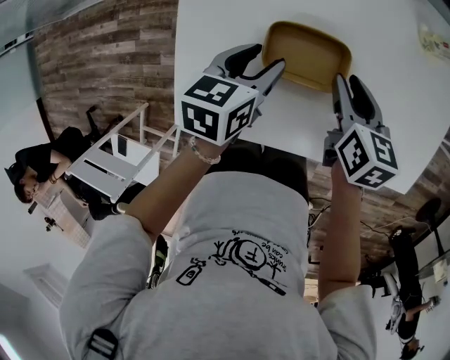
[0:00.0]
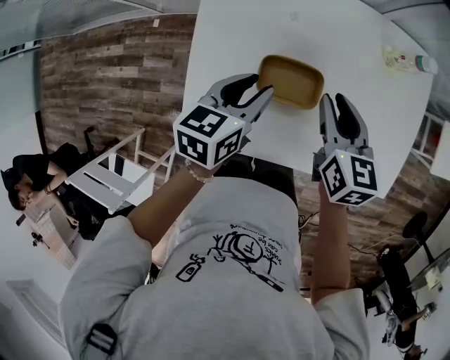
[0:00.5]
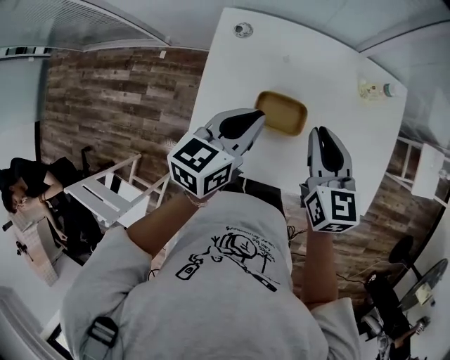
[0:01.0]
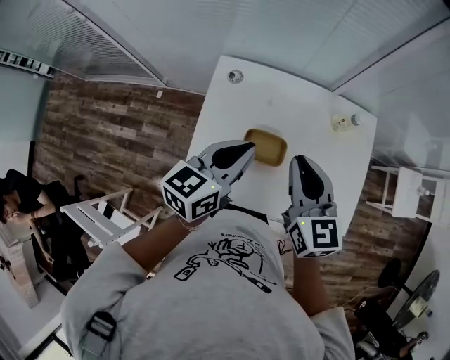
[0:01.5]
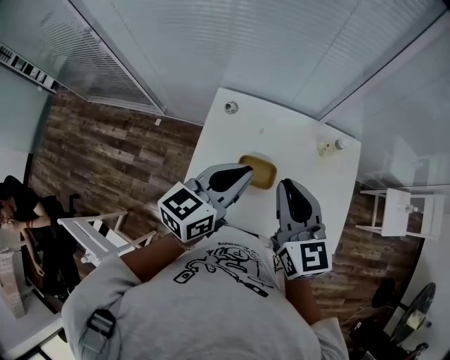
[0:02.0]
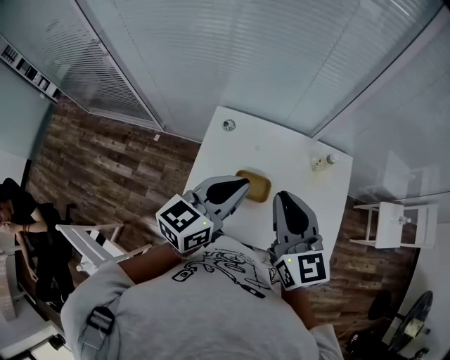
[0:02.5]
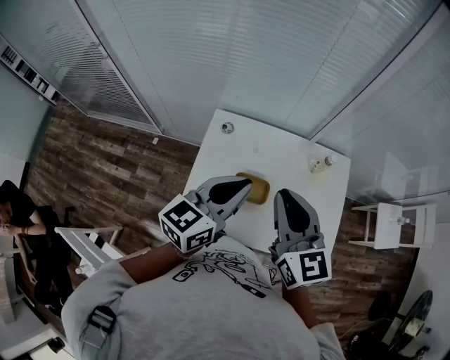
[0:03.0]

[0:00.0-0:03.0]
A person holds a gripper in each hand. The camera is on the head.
0:00.0 to 0:01.5: Both grippers move upward, roughly 35 cm. The right gripper swivels approximately 30 degrees, and closes up. Meanwhile the left gripper swivels roughly 30 degrees, and closes.
0:01.5 to 0:03.0: The two grippers go about 10 cm upward.

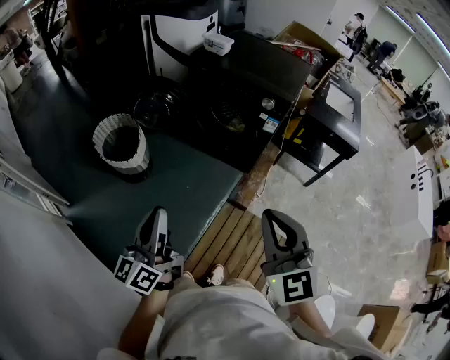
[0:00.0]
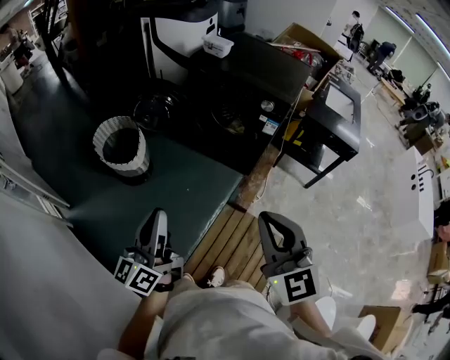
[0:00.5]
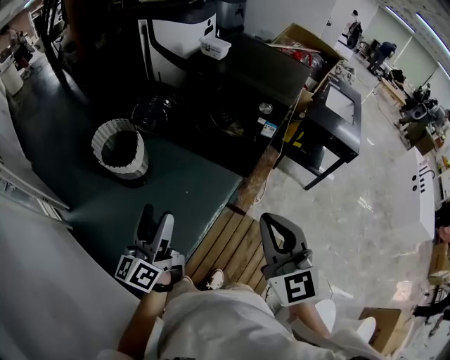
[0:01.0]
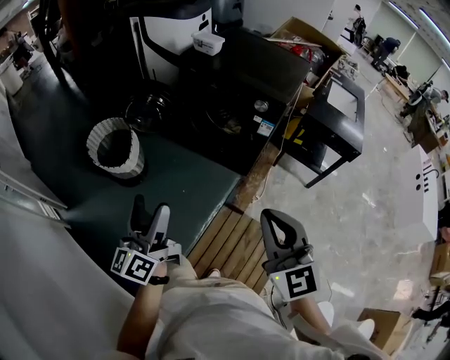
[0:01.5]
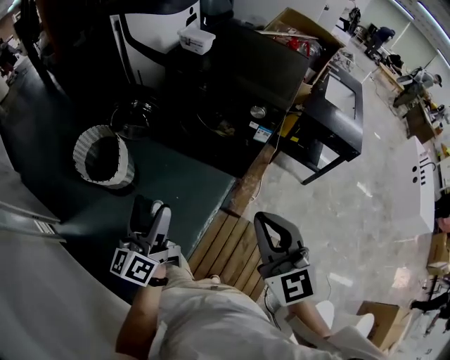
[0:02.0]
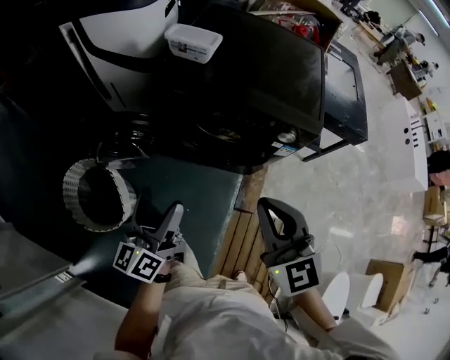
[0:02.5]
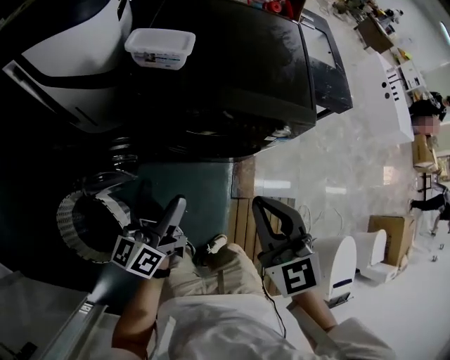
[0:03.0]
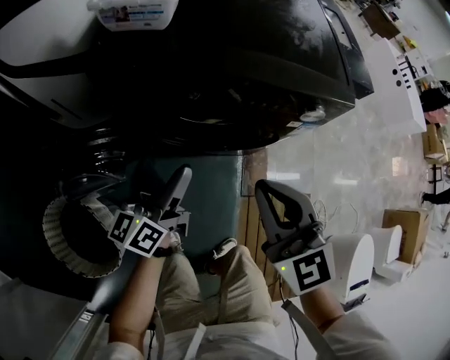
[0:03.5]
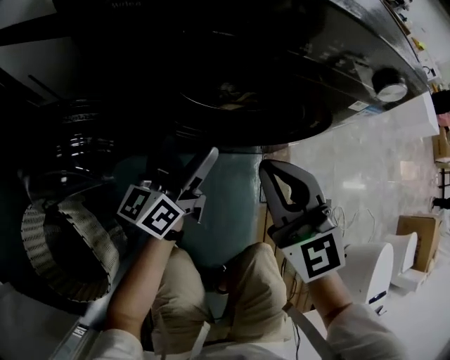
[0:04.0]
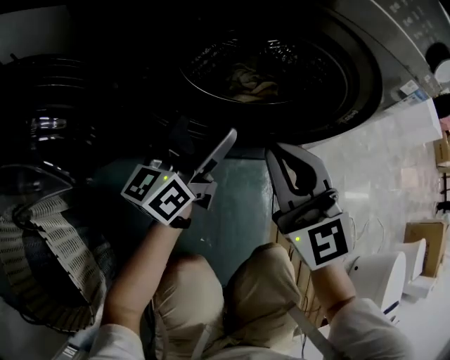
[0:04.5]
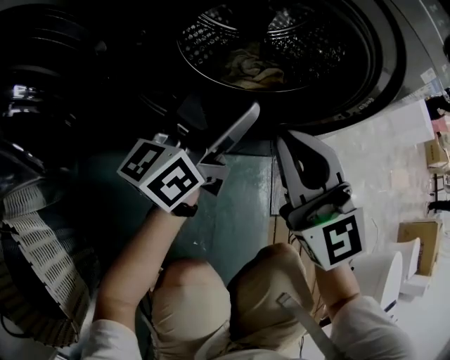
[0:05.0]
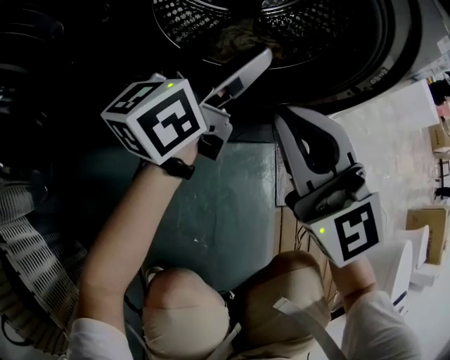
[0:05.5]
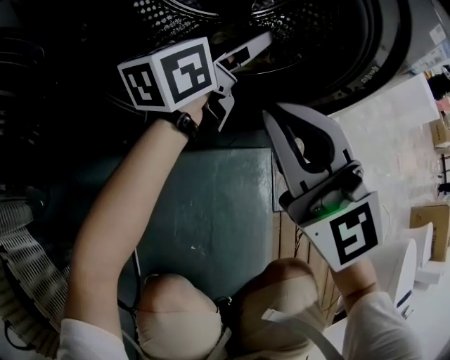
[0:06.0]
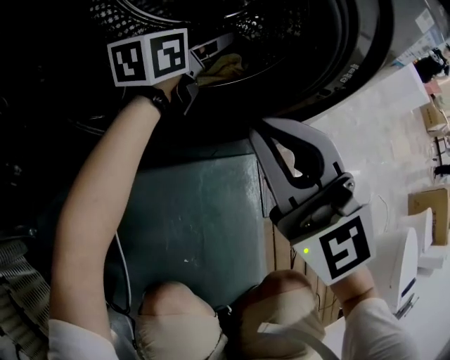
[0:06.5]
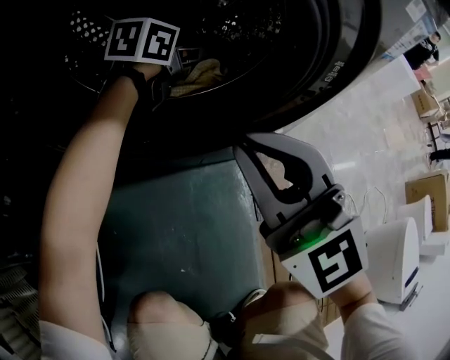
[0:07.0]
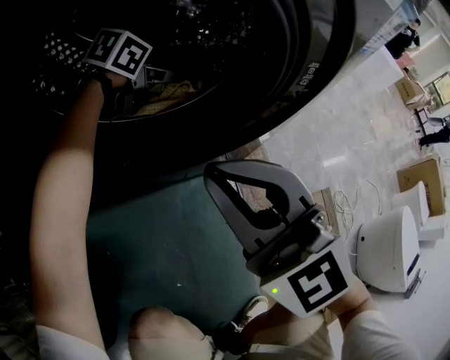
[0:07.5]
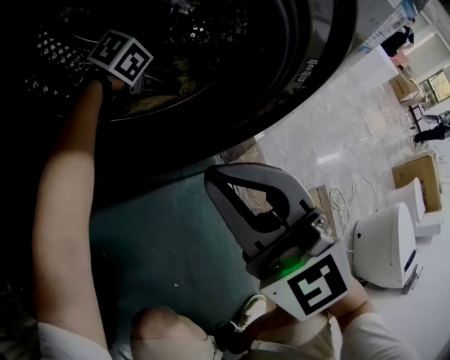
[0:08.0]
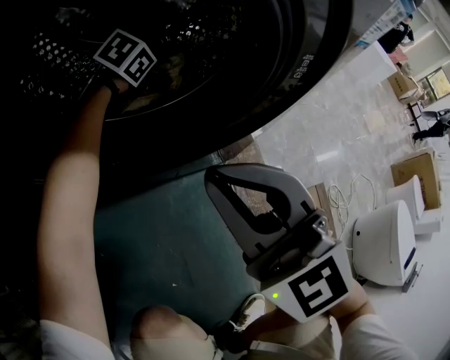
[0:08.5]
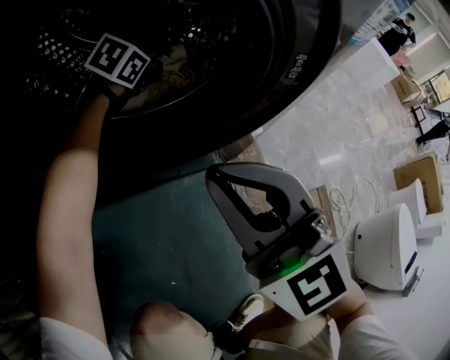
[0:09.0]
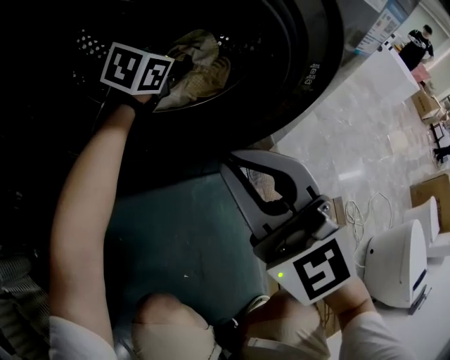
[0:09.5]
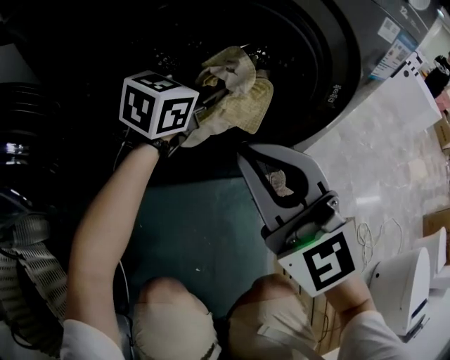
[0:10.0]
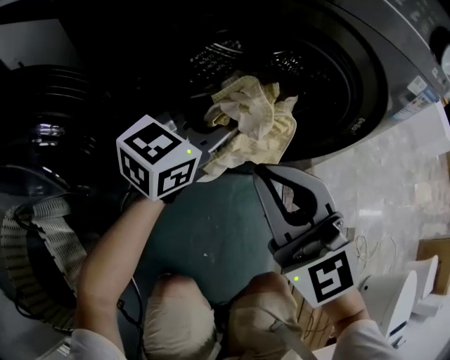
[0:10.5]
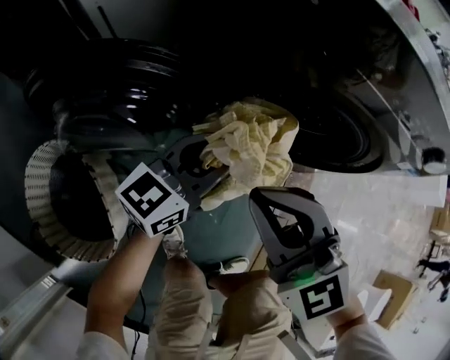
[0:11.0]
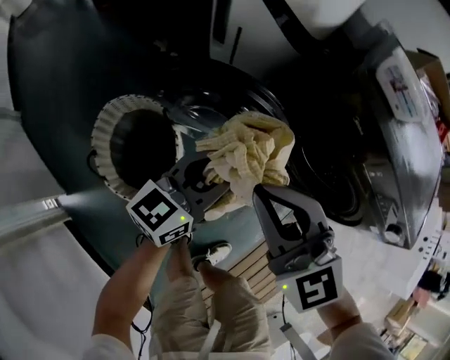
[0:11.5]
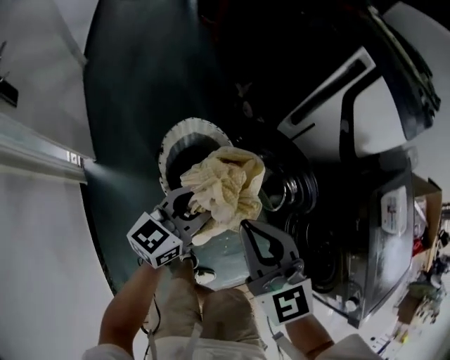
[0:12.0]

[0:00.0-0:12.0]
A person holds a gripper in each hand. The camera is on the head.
0:00.0 to 0:02.0: The right gripper goes about 15 cm forward and to the right, while the left gripper travels forward by approximately 20 cm, and opens.
0:02.0 to 0:04.0: The pair of grippers is taken about 50 cm. The left gripper changes its angle by approximately 40 degrees.
0:04.0 to 0:06.0: The right gripper heads downward, covering roughly 15 cm. The left gripper heads forward, to the right and downward, covering approximately 25 cm.
0:06.0 to 0:08.0: The left gripper shifts some 20 cm downward and forward, and points its fingers approximately 50 degrees further downward, while the right gripper ends up some 5 cm from where it was.
0:08.0 to 0:10.0: The right gripper is displaced upward by some 5 cm. Meanwhile the left gripper is displaced upward and backward by some 20 cm, rotates about 40 degrees, and closes up.
0:10.0 to 0:12.0: The left gripper moves to the left, backward and upward, approximately 30 cm, and turns by about 30 degrees. Meanwhile the right gripper goes approximately 20 cm upward and to the left, and swivels some 20 degrees.

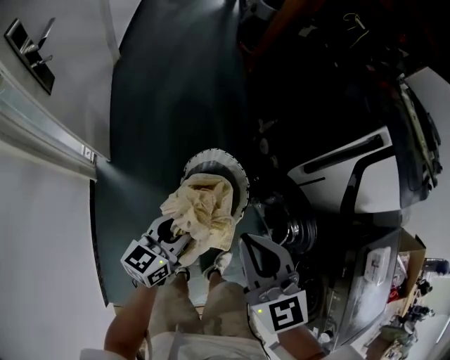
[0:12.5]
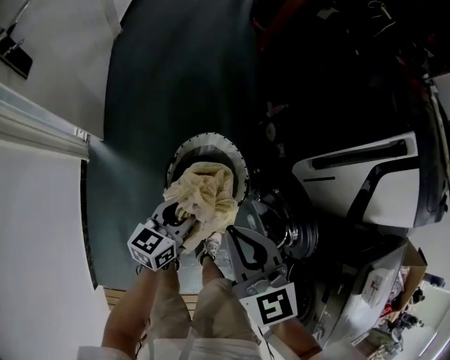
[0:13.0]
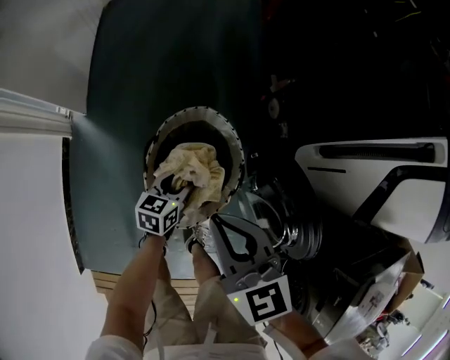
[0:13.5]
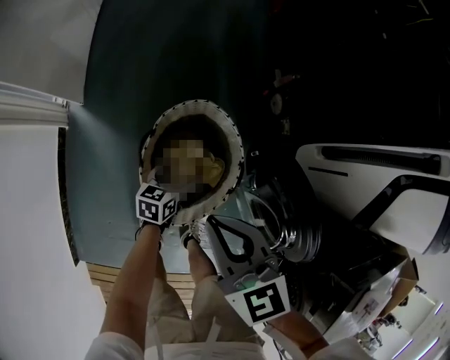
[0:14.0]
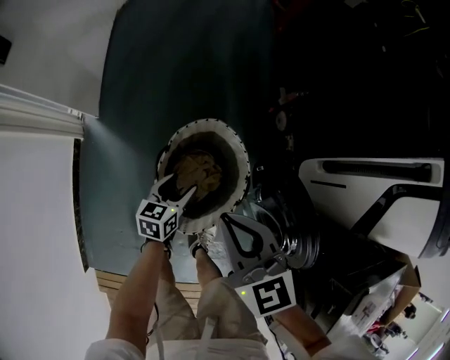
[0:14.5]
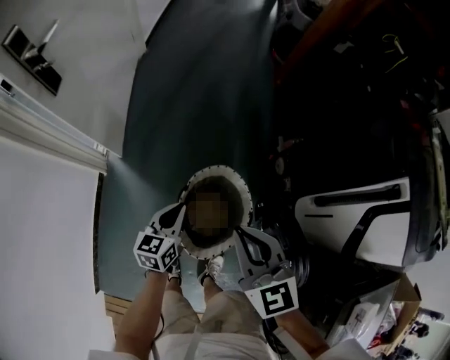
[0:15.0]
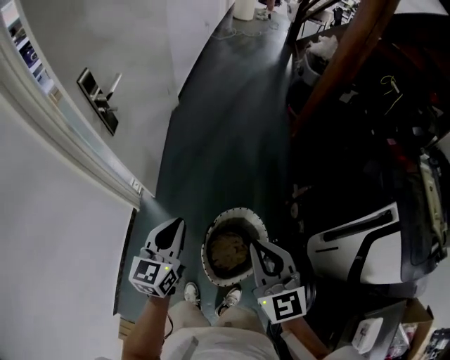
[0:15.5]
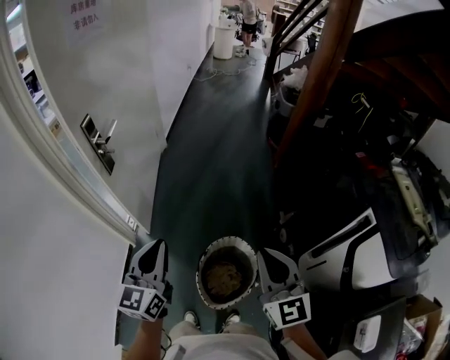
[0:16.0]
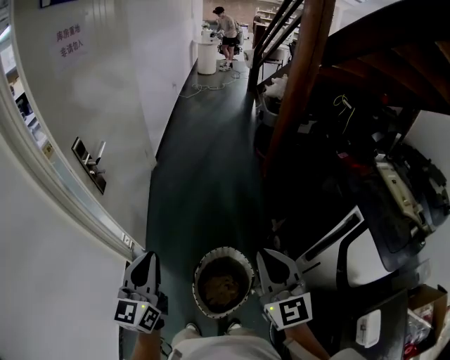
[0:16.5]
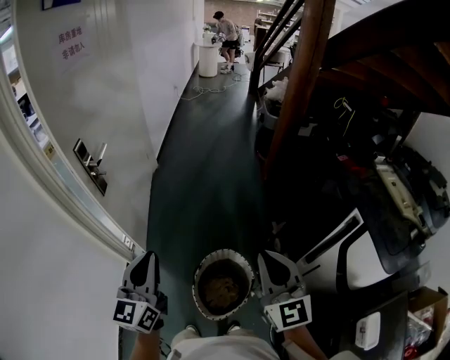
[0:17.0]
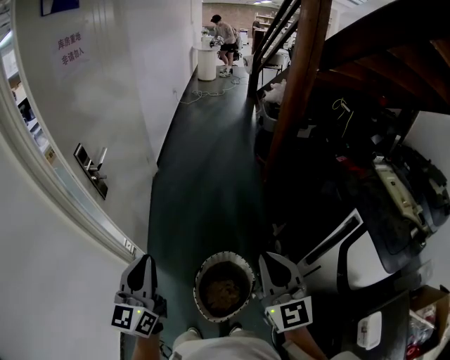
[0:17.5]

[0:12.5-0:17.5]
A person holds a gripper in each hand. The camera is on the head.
0:12.5 to 0:15.0: The right gripper travels forward and to the right by roughly 15 cm, and travels downward and back again, approximately 20 cm each way. The left gripper heads forward, covering some 10 cm, reaches some 35 cm downward, then returns, rotates roughly 30 degrees, and opens and closes again.
0:15.0 to 0:17.5: The left gripper moves upward, approximately 40 cm, and angles its fingers upward, by about 30 degrees. Meanwhile the right gripper heads upward, covering roughly 25 cm, and changes its angle by about 30 degrees.

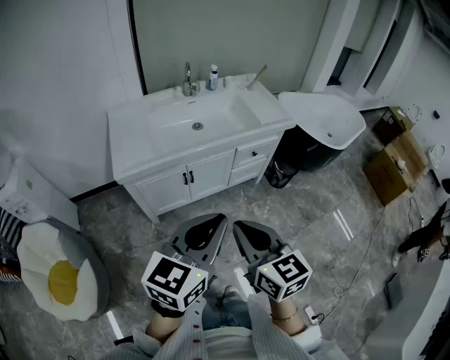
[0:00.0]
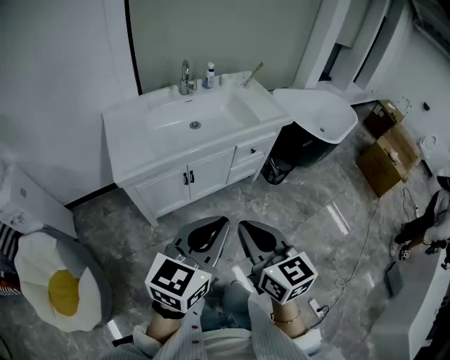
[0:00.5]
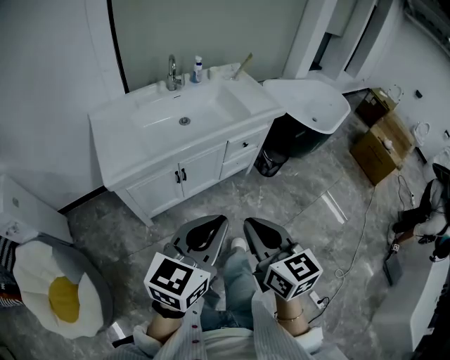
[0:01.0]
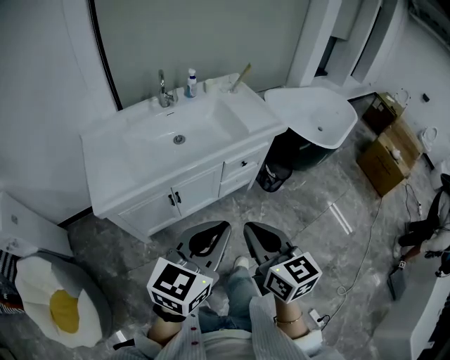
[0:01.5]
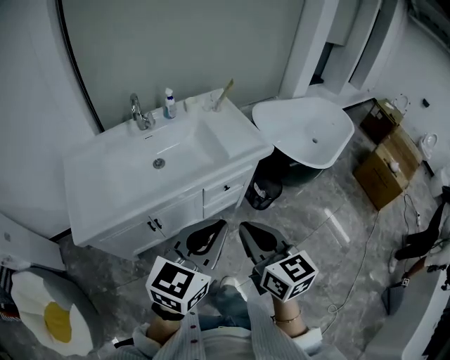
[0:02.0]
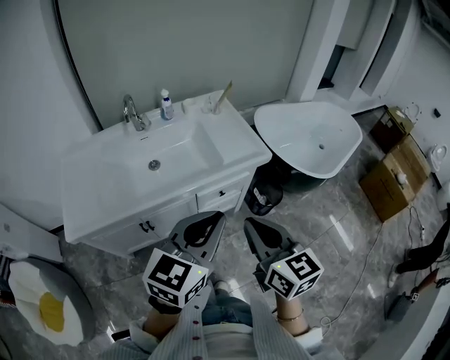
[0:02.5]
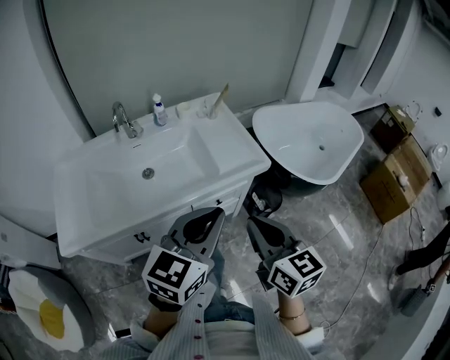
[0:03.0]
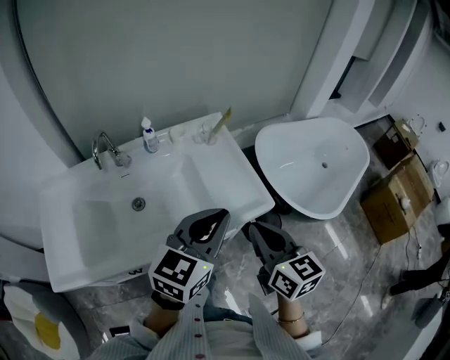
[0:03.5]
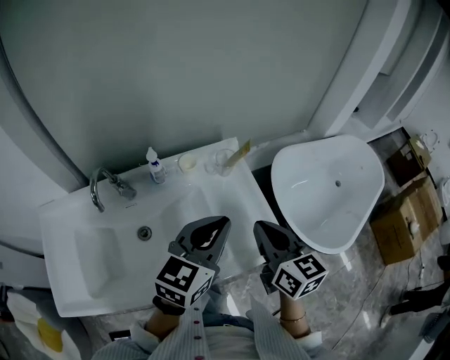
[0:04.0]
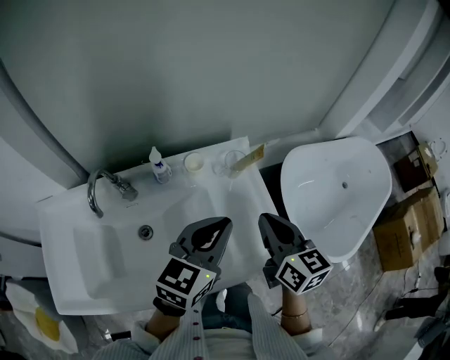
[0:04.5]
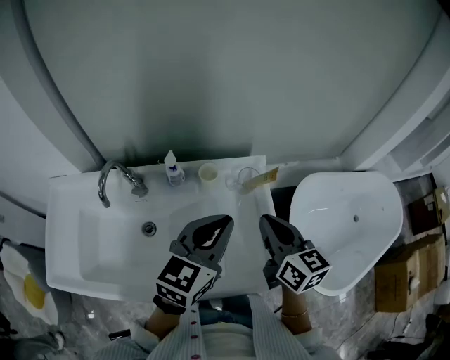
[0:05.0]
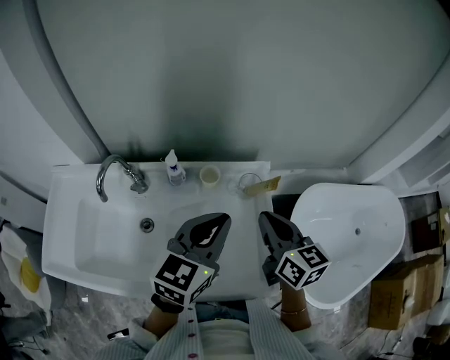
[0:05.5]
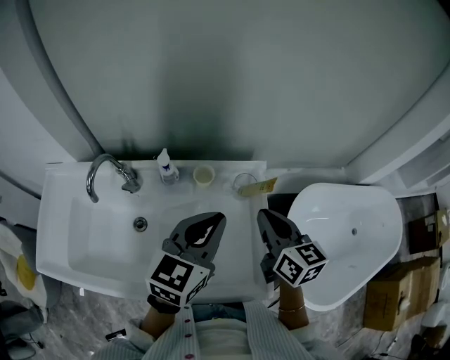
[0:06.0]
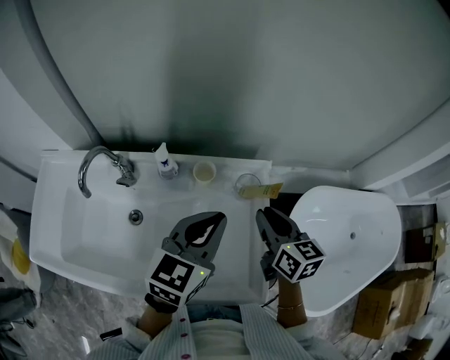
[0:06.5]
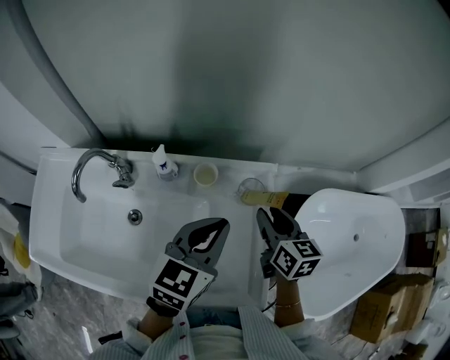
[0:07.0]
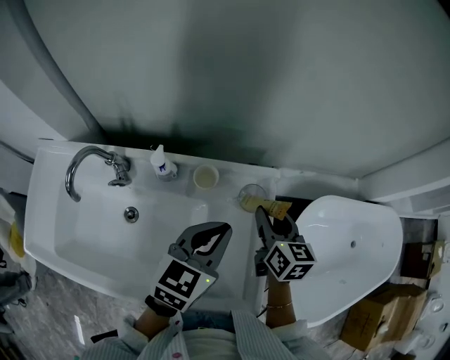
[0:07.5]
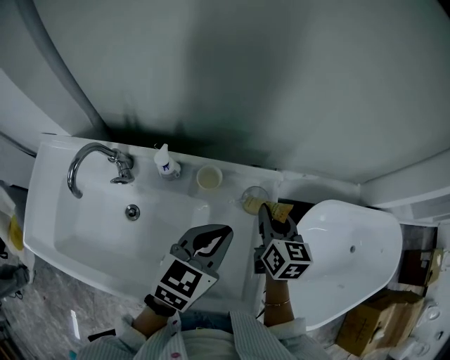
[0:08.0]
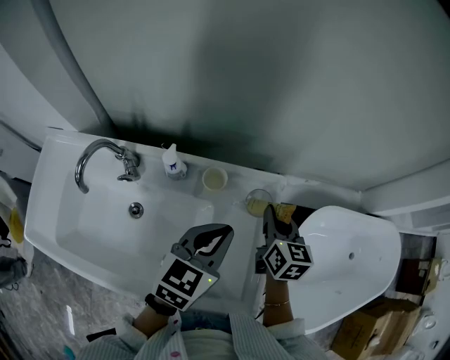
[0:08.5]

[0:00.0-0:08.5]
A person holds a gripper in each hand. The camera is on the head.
0:00.0 to 0:02.0: Both grippers move forward and to the right, some 25 cm.
0:02.0 to 0:04.0: The pair of grippers is taken forward, about 40 cm.
0:04.0 to 0:06.5: Both grippers travel together forward, roughly 15 cm. The right gripper turns by roughly 20 degrees; the left gripper swivels approximately 20 degrees.
0:06.5 to 0:08.5: The left gripper moves downward, approximately 5 cm; the right gripper moves forward and downward, about 10 cm, and opens, then closes again.
